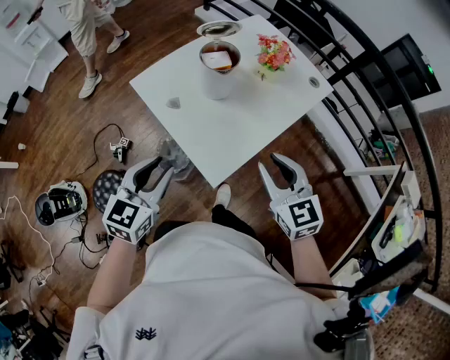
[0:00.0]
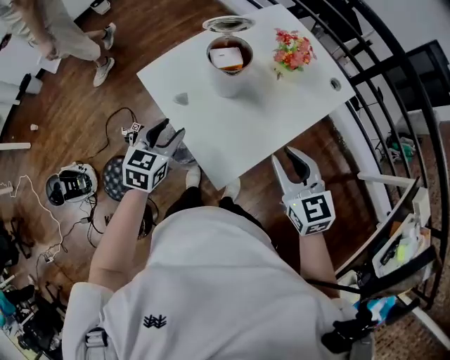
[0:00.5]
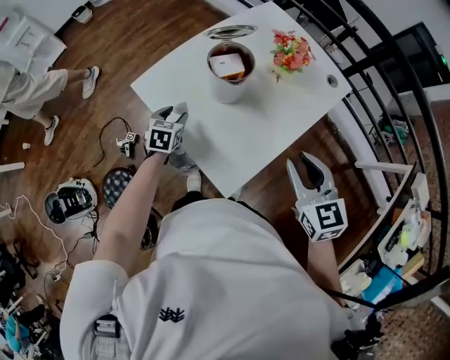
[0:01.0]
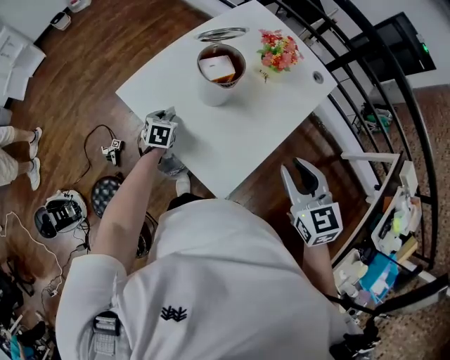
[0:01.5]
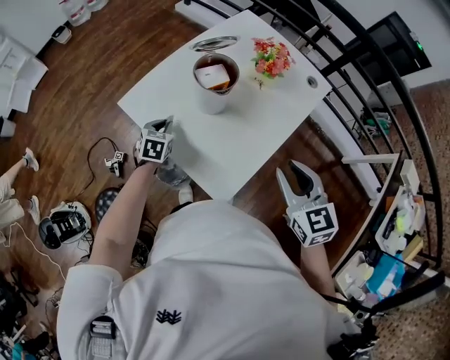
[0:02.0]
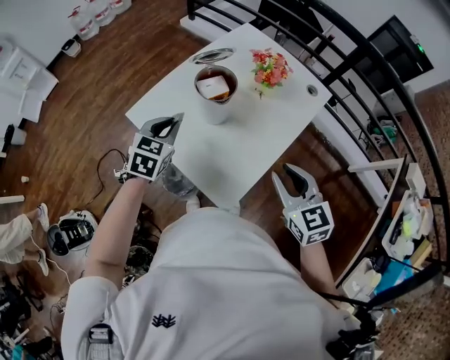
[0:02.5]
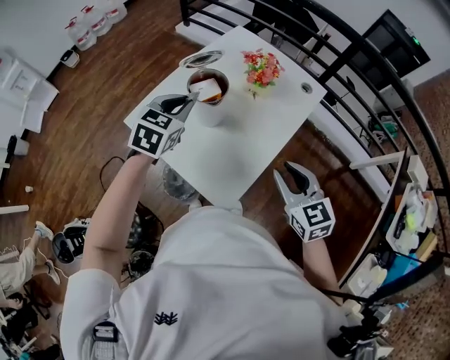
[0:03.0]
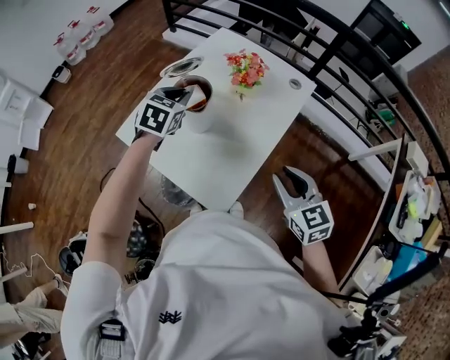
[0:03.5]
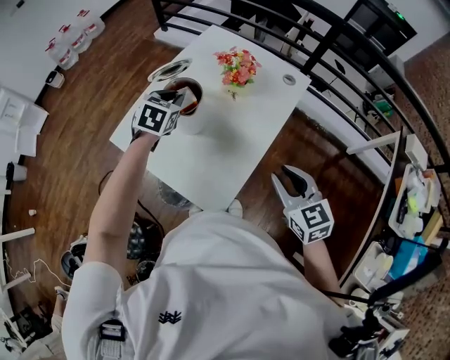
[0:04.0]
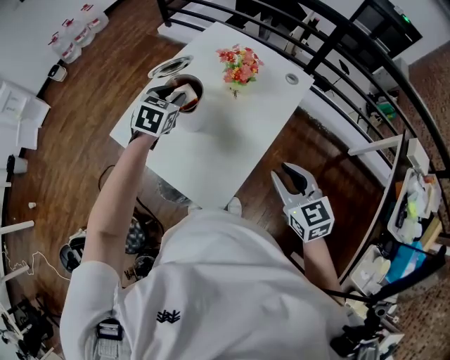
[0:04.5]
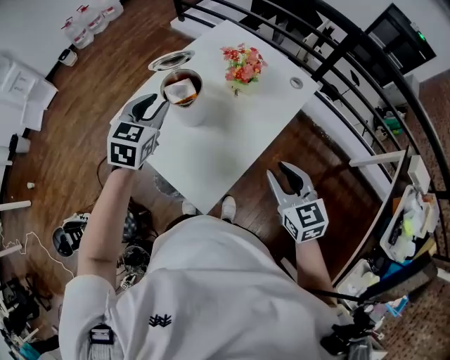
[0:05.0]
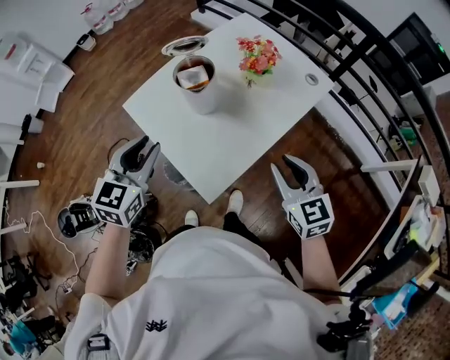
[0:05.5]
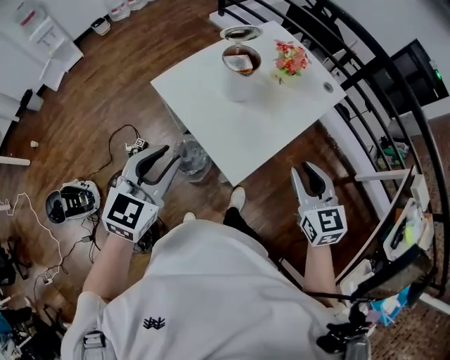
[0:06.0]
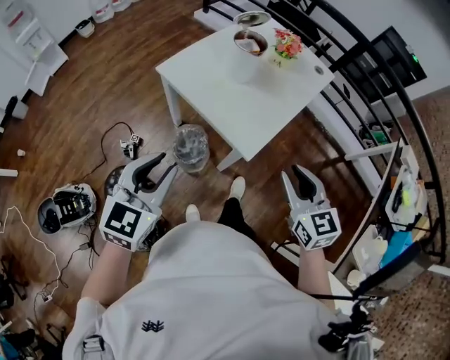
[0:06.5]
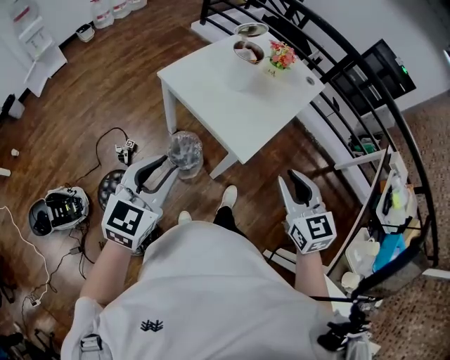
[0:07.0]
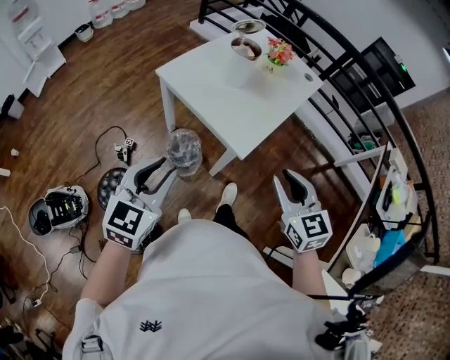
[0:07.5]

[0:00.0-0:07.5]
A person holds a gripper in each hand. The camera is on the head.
0:00.0 to 0:02.0: The left gripper shifts about 35 cm forward and downward, and changes its angle by approximately 30 degrees; the right gripper moves forward, approximately 5 cm.
0:02.0 to 0:04.0: The right gripper heads to the right, covering approximately 5 cm. The left gripper goes roughly 25 cm upward, to the right and forward, and turns by roughly 20 degrees.
0:04.0 to 0:05.5: The left gripper heads backward and upward, covering about 25 cm, and swivels roughly 20 degrees.
0:05.5 to 0:07.5: The grippers both shift backward and to the left by roughly 35 cm.

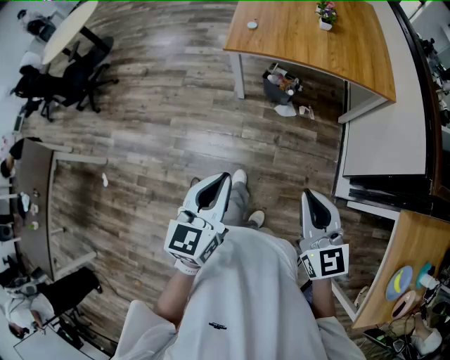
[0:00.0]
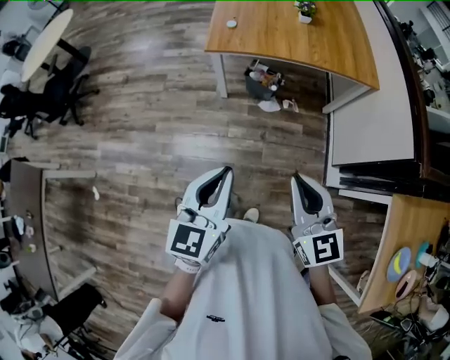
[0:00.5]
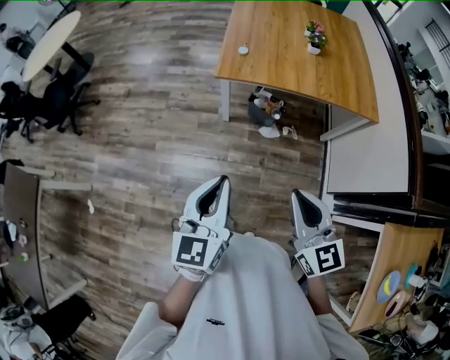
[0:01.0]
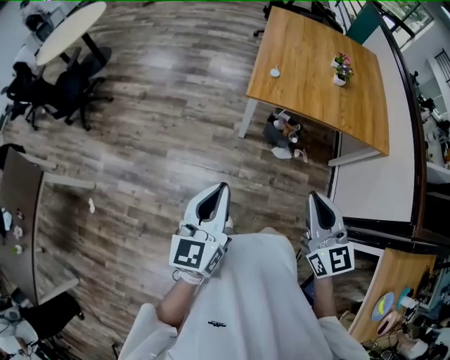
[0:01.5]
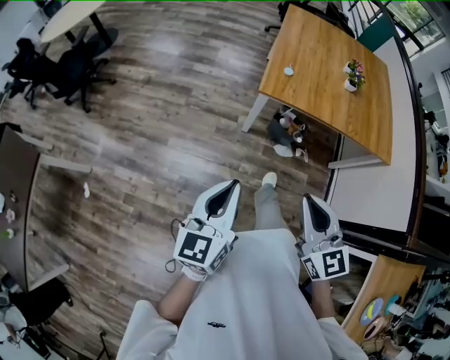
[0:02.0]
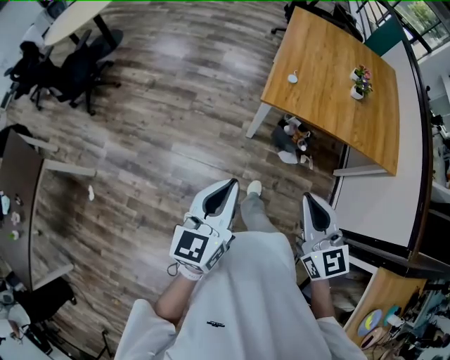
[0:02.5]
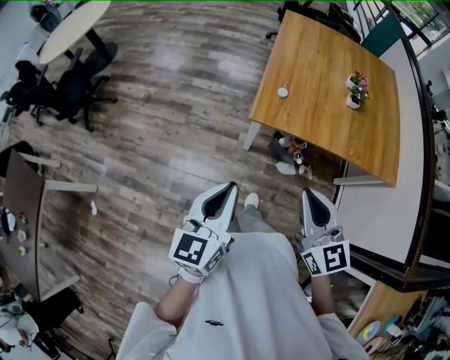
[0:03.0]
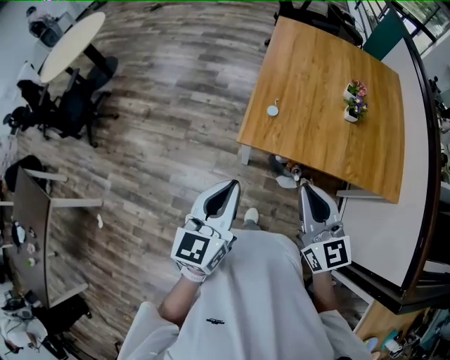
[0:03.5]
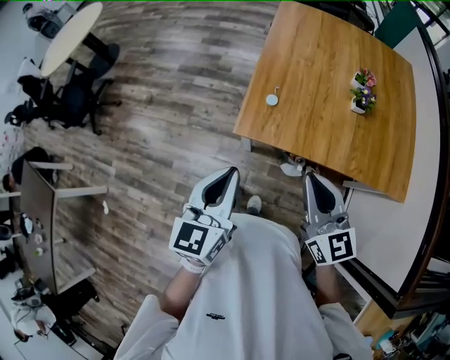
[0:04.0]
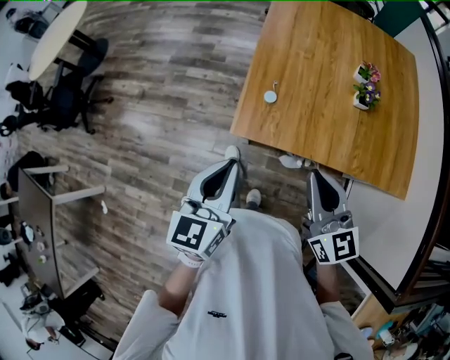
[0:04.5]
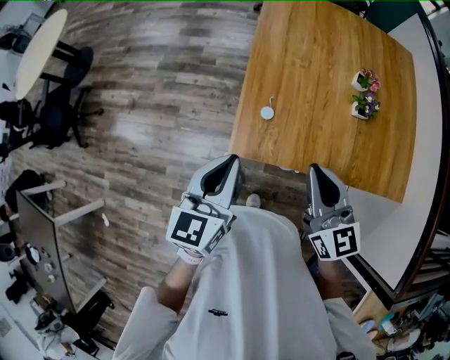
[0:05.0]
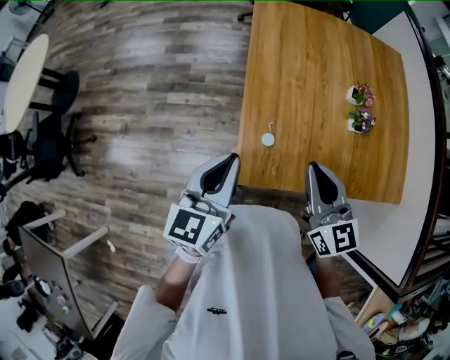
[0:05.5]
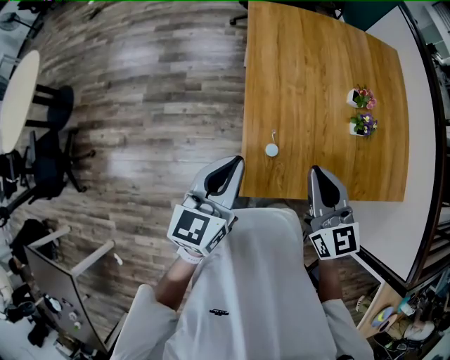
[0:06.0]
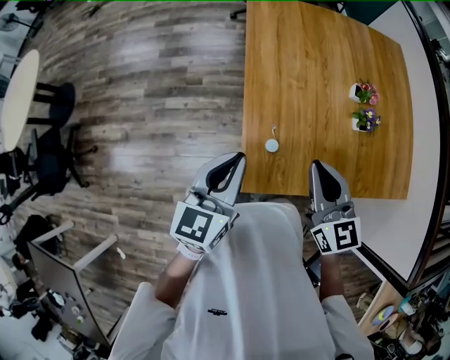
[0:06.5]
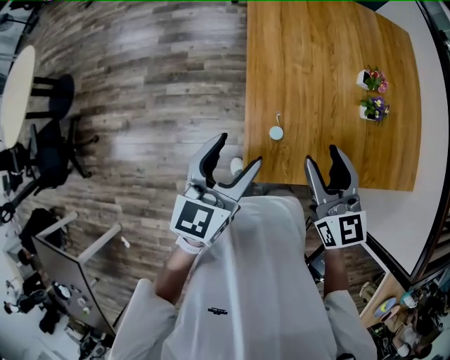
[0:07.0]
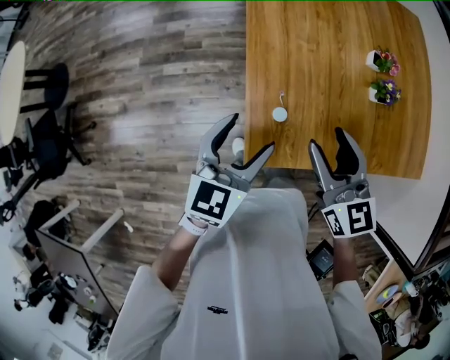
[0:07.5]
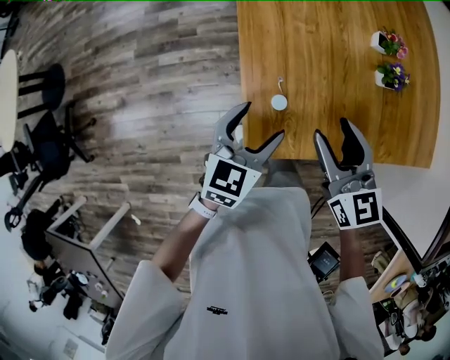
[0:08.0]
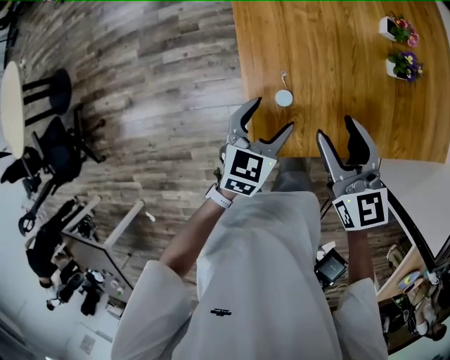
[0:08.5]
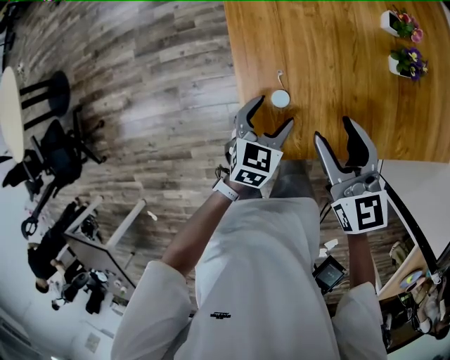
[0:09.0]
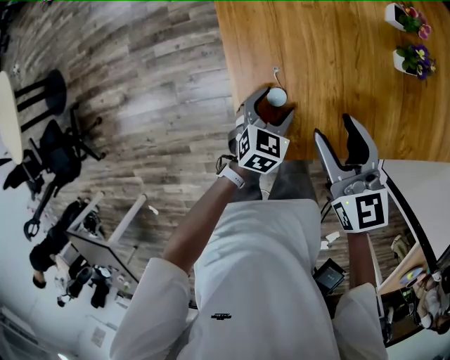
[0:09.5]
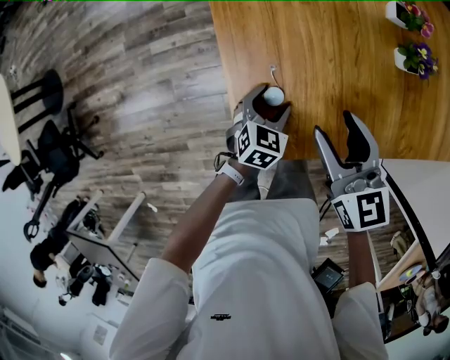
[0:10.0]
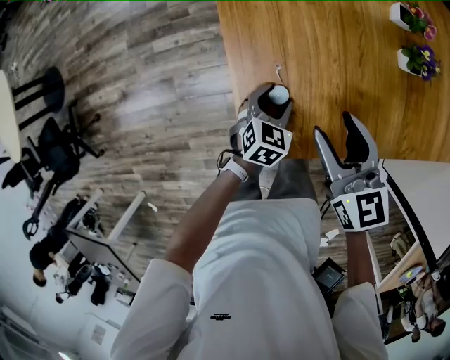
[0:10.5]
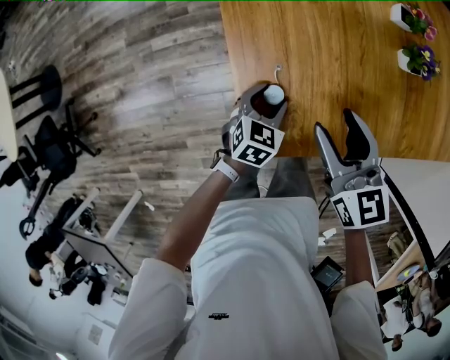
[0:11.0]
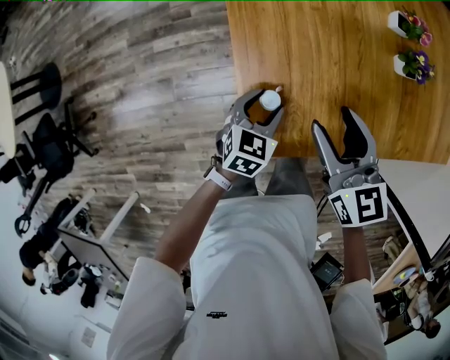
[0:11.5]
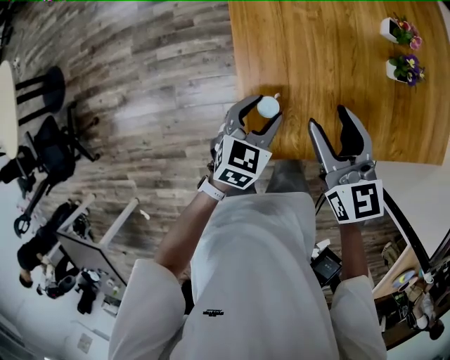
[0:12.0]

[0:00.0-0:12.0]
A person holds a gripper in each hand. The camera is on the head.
0:00.0 to 0:02.0: The grippers both shift to the left and forward by about 25 cm.
0:02.0 to 0:04.0: Both grippers travel together forward and to the right, roughly 35 cm.
0:04.0 to 0:06.0: The two grippers go approximately 25 cm forward.
0:06.0 to 0:08.0: The right gripper travels downward by roughly 10 cm, and opens its fingers. The left gripper is displaced downward and to the right by about 15 cm, changes its angle by about 20 degrees, and opens its fingers.
0:08.0 to 0:10.0: The left gripper heads downward, covering about 20 cm, and turns by approximately 20 degrees; the right gripper moves downward, some 10 cm.
0:10.0 to 0:12.0: The right gripper ends up approximately 5 cm from where it was. The left gripper is displaced upward by some 10 cm.

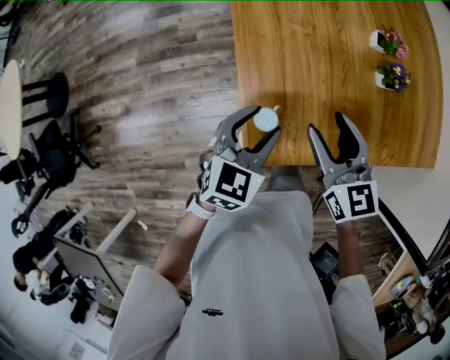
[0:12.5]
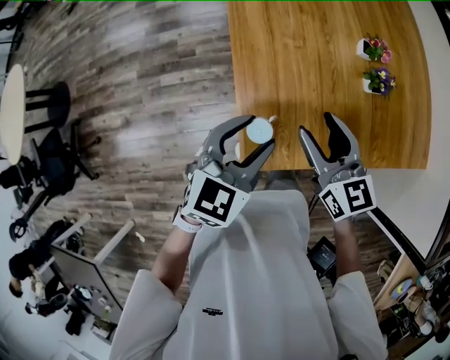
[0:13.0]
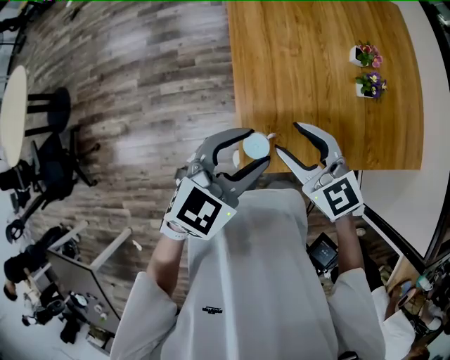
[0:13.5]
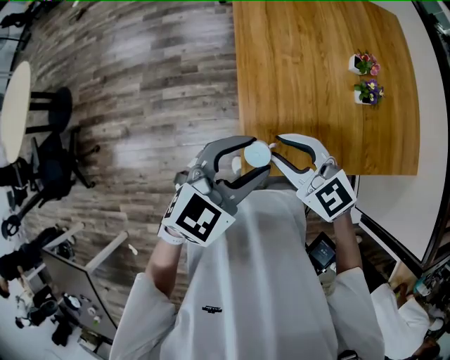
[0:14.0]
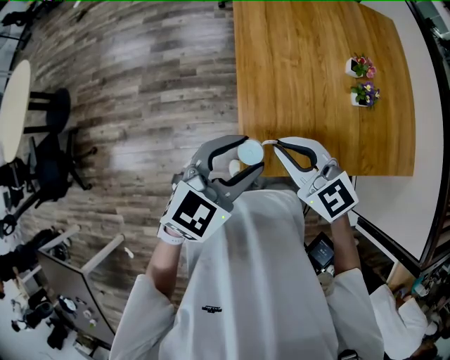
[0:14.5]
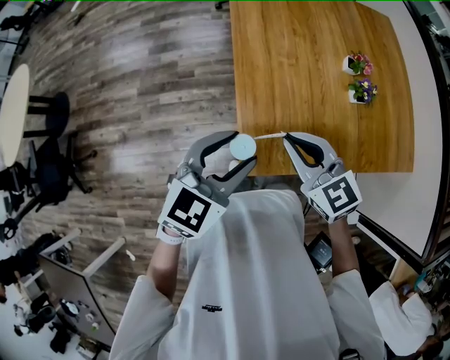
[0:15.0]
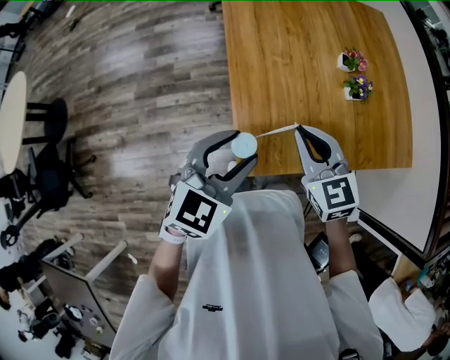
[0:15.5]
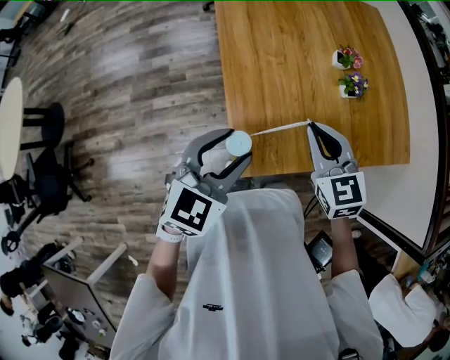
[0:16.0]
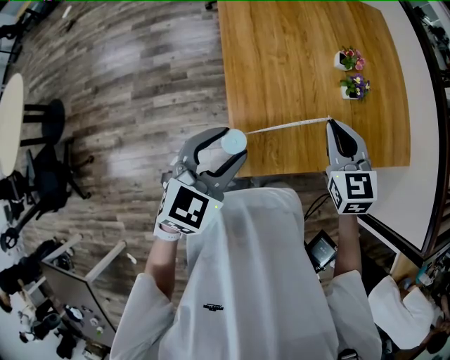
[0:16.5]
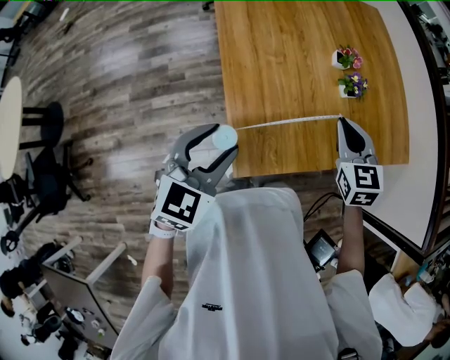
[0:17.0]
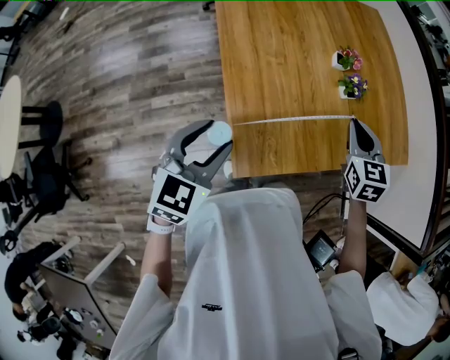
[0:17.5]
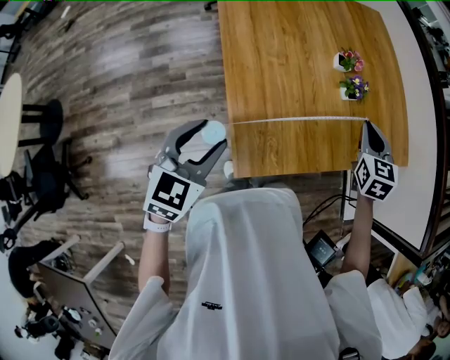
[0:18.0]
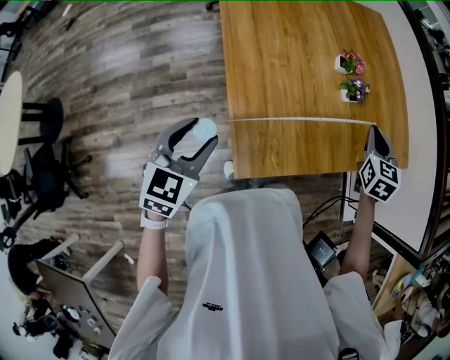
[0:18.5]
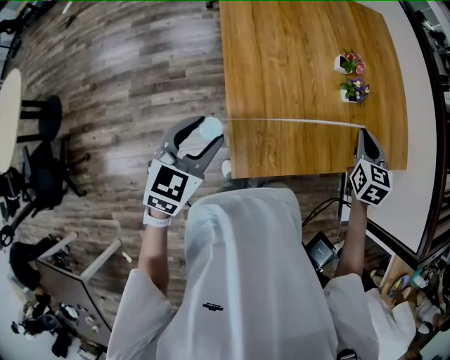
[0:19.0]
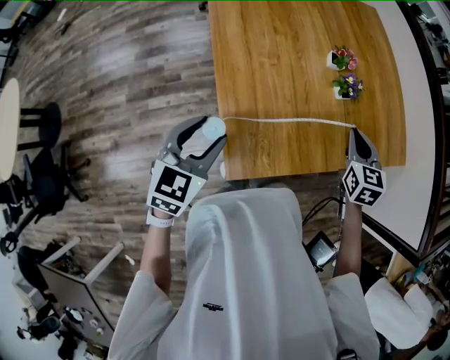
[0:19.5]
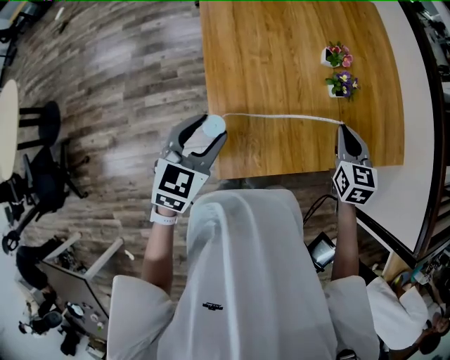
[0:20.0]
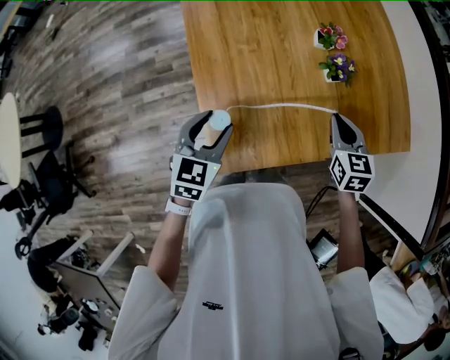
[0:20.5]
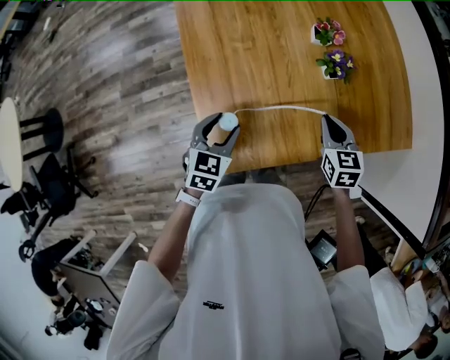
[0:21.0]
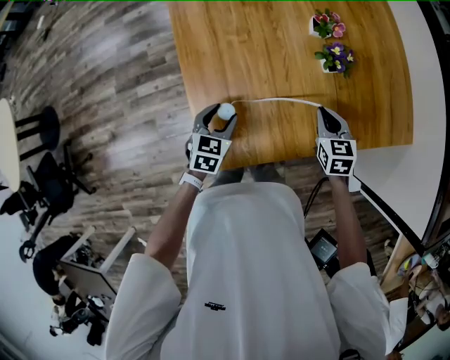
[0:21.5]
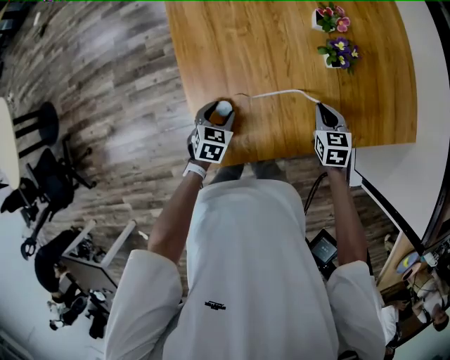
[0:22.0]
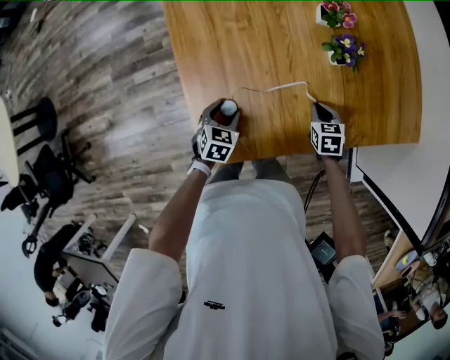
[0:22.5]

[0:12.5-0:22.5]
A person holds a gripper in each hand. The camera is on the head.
0:12.5 to 0:14.5: The right gripper travels to the left, backward and upward by roughly 15 cm, swivels some 40 degrees, and closes; the left gripper heads upward and backward, covering approximately 15 cm.
0:14.5 to 0:16.5: The right gripper goes roughly 15 cm to the right and forward, and turns by about 40 degrees.
0:16.5 to 0:18.5: The left gripper travels to the left by some 10 cm; the right gripper goes approximately 15 cm to the right and forward, and turns by roughly 30 degrees.
0:18.5 to 0:20.5: The left gripper moves to the right, forward and downward, some 15 cm, while the right gripper travels downward by about 5 cm.
0:20.5 to 0:22.5: The two grippers go about 20 cm downward. The right gripper swivels some 20 degrees.
